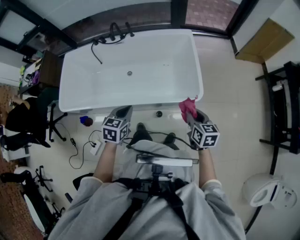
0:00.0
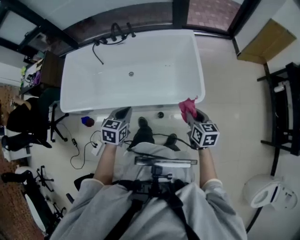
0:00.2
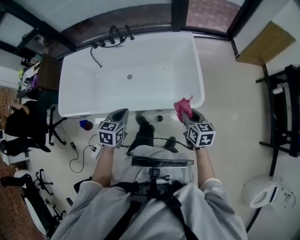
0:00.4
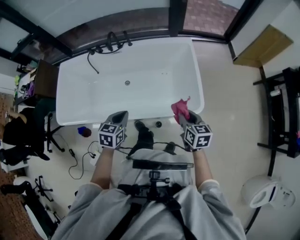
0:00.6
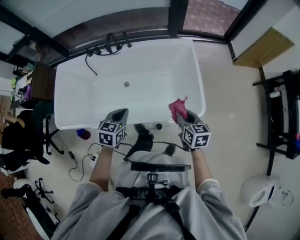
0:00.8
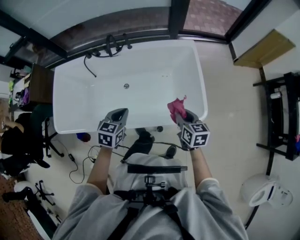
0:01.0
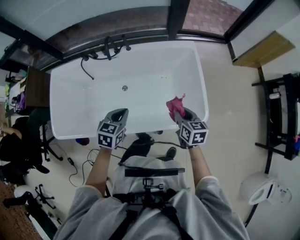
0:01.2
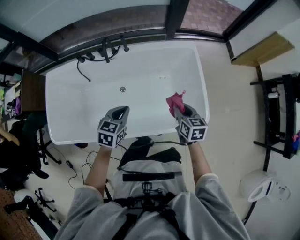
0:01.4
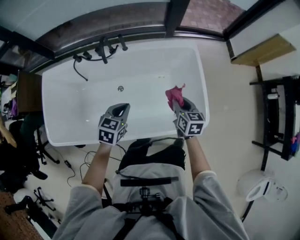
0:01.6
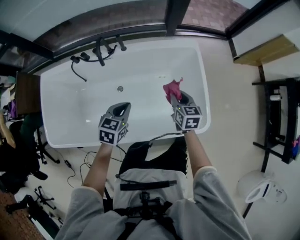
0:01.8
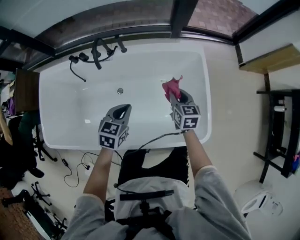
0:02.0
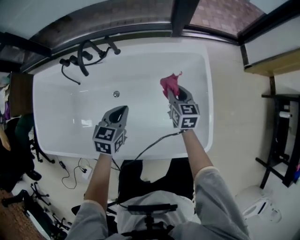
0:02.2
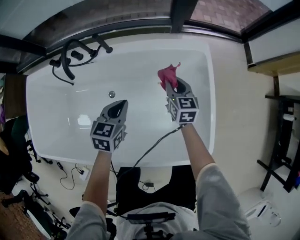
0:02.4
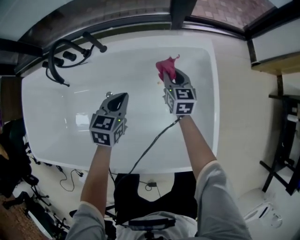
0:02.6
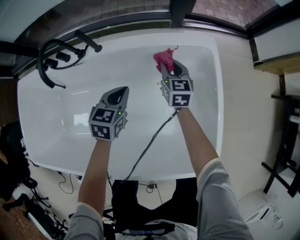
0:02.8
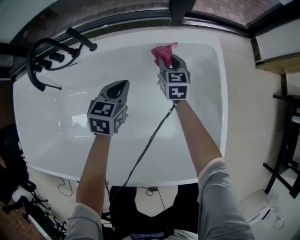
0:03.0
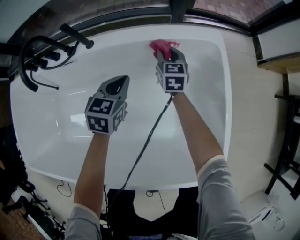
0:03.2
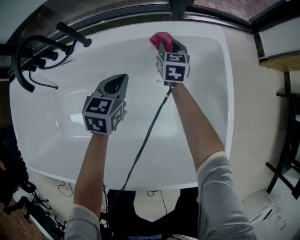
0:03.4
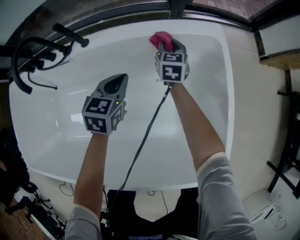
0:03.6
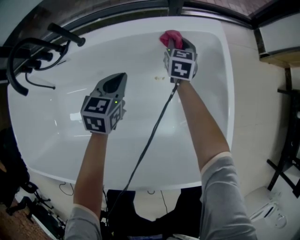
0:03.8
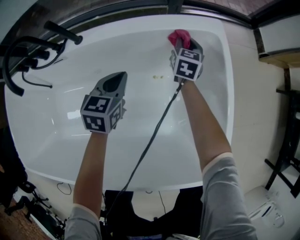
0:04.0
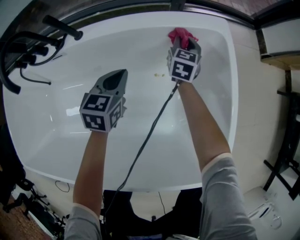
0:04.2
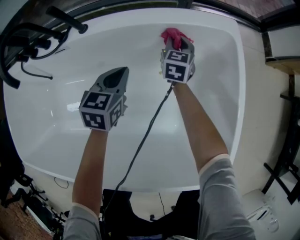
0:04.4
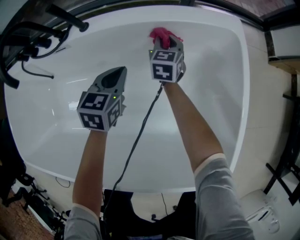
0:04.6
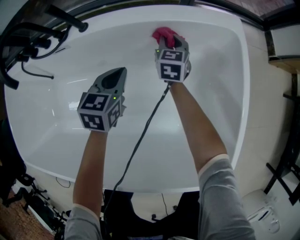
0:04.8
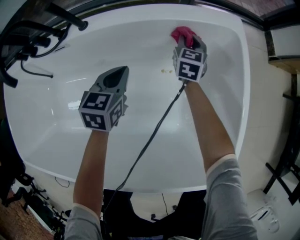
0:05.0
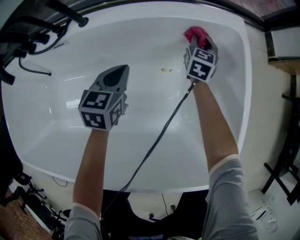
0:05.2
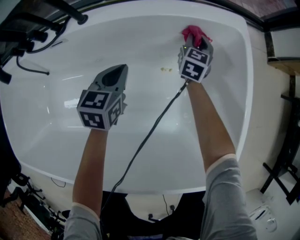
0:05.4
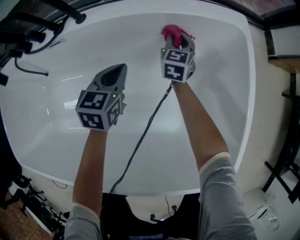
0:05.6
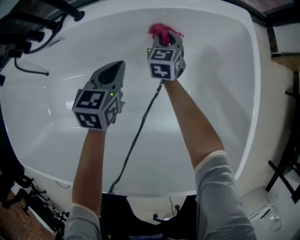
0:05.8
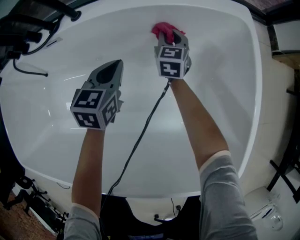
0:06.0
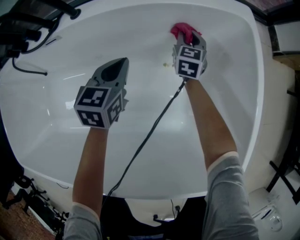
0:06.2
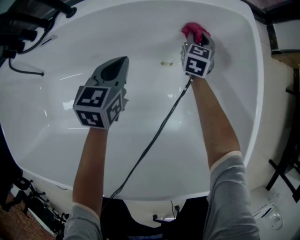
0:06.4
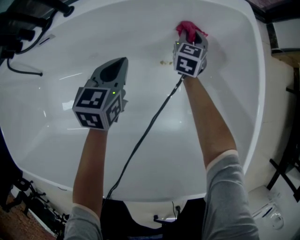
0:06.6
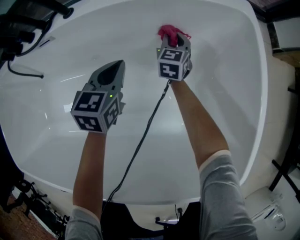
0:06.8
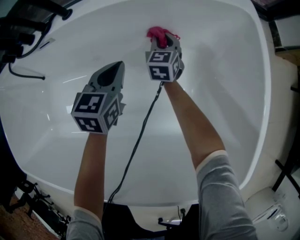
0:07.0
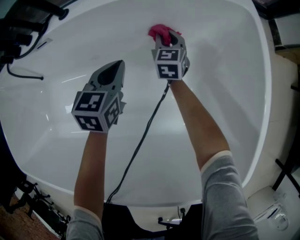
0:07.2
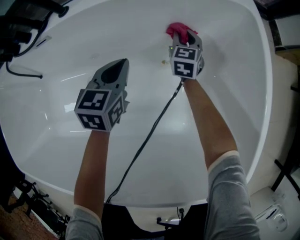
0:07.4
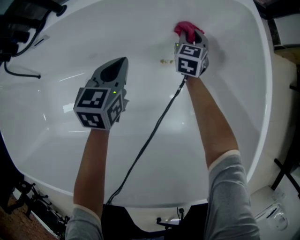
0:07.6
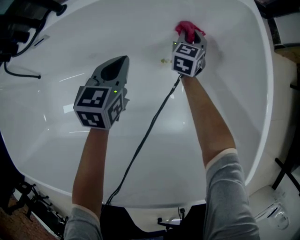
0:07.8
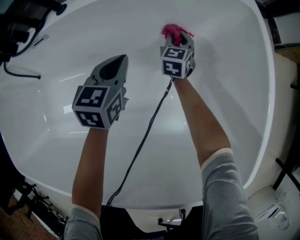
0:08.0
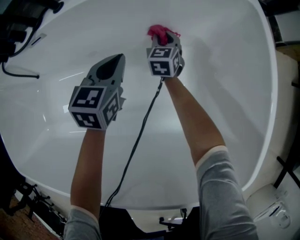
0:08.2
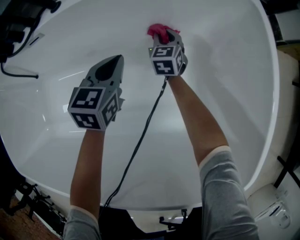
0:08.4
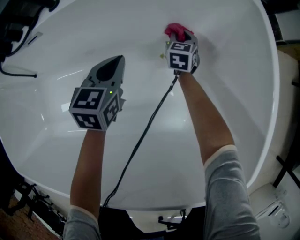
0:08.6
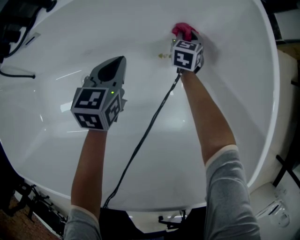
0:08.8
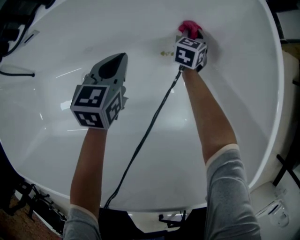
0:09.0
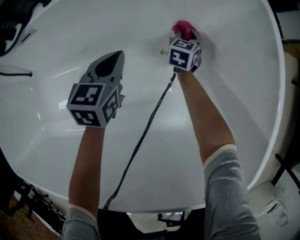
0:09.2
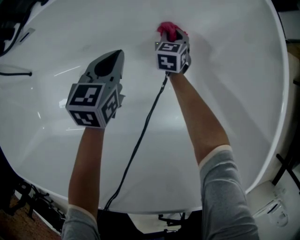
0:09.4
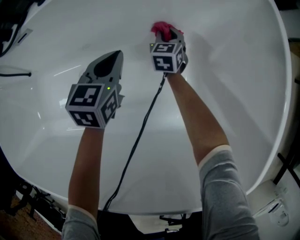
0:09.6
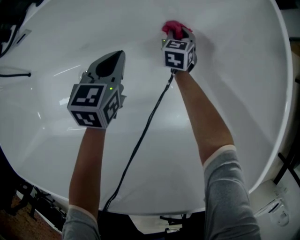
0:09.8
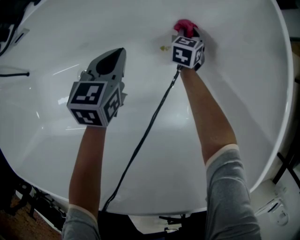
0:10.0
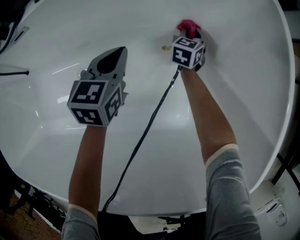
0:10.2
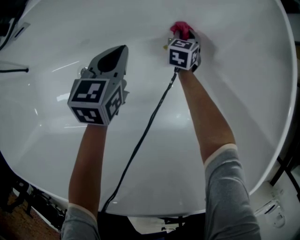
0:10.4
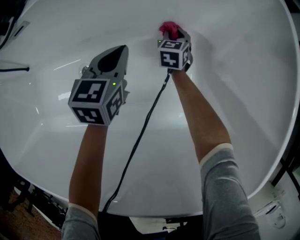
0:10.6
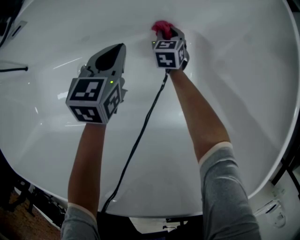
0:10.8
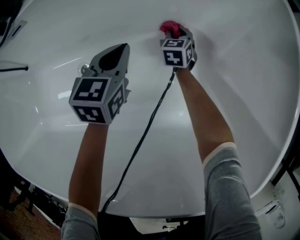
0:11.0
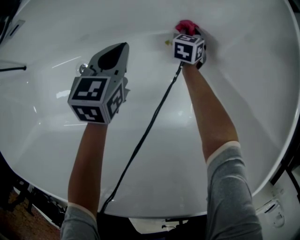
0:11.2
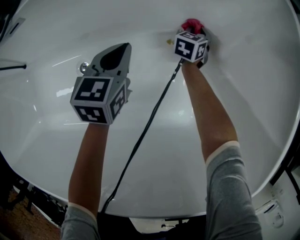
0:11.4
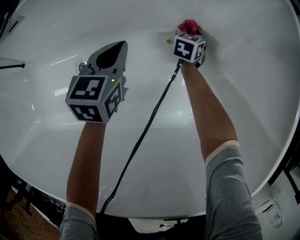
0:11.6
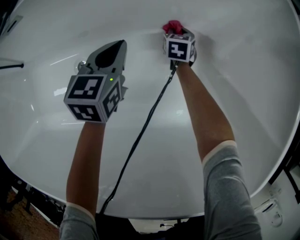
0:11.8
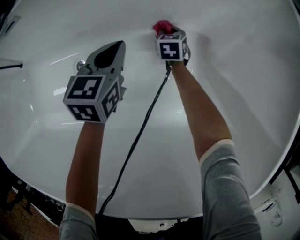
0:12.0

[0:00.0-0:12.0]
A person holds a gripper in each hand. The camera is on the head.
0:00.0 to 0:01.6: The left gripper heads forward, covering some 30 cm. Meanwhile the right gripper is displaced forward and to the left by about 35 cm.
0:01.6 to 0:03.0: Both grippers move forward and downward, approximately 40 cm.
0:03.0 to 0:04.4: The two grippers go approximately 5 cm downward. The right gripper goes to the right and returns, some 10 cm each way.
0:04.4 to 0:06.0: The right gripper moves left and right over roughly 15 cm, changing direction 2 times; the left gripper moves about 5 cm.
0:06.0 to 0:07.6: The right gripper swings left and right, approximately 15 cm each way, with 2 reversals. The left gripper shifts by roughly 5 cm.
0:07.6 to 0:09.0: The right gripper travels downward by some 5 cm, and goes to the left and returns, about 10 cm each way.
0:09.0 to 0:10.4: The right gripper shifts about 5 cm downward.
0:10.4 to 0:12.0: The right gripper swings left and right, about 10 cm each way, with 2 reversals.

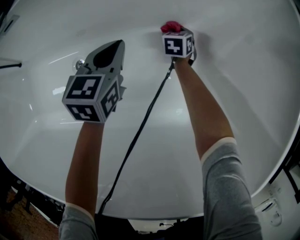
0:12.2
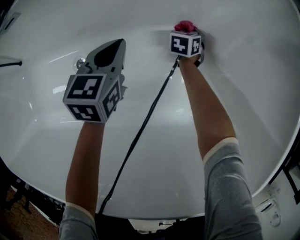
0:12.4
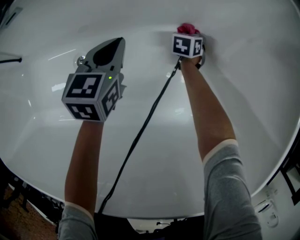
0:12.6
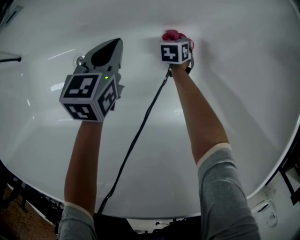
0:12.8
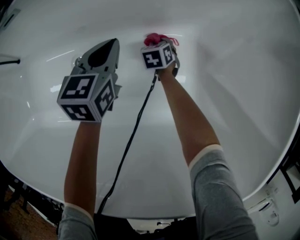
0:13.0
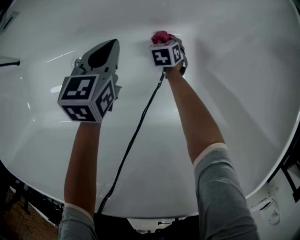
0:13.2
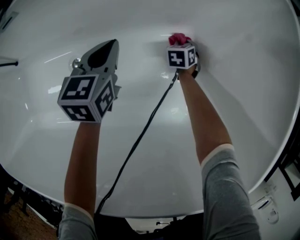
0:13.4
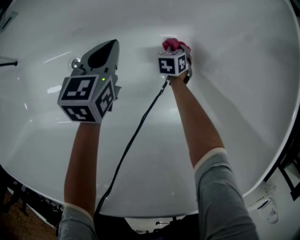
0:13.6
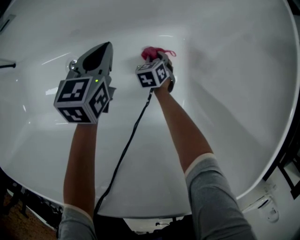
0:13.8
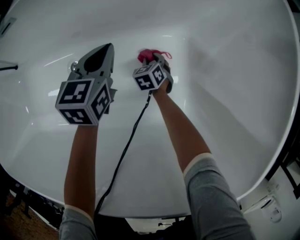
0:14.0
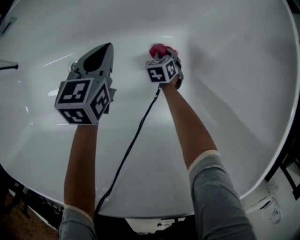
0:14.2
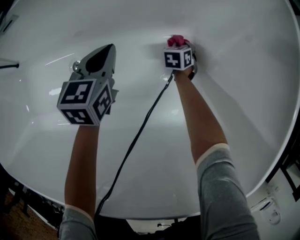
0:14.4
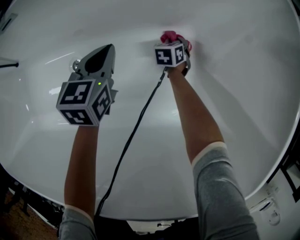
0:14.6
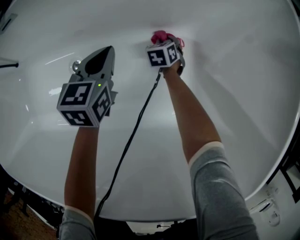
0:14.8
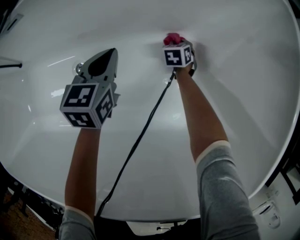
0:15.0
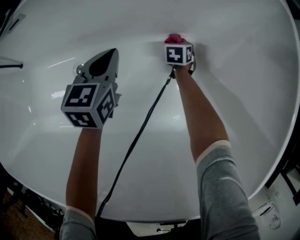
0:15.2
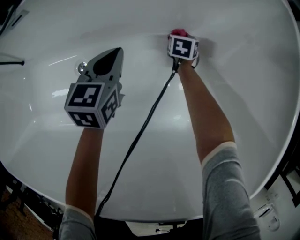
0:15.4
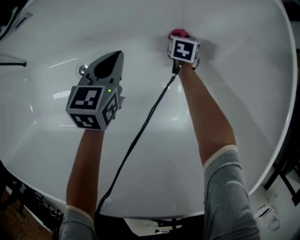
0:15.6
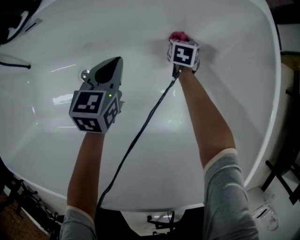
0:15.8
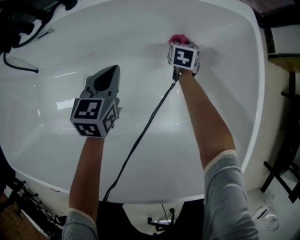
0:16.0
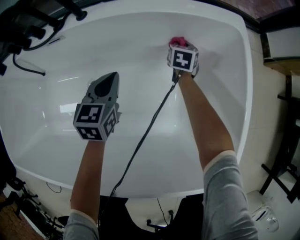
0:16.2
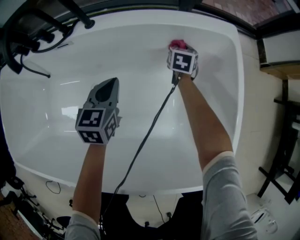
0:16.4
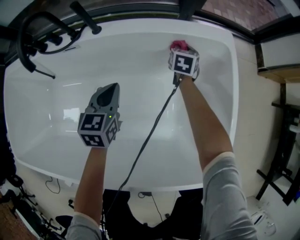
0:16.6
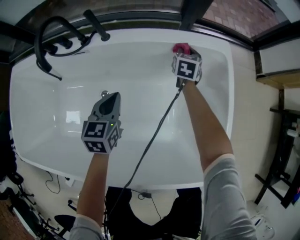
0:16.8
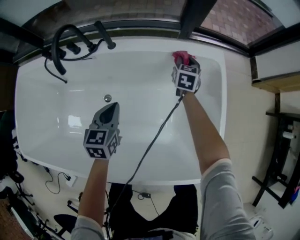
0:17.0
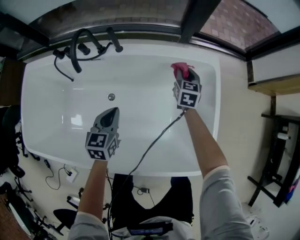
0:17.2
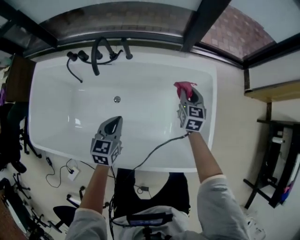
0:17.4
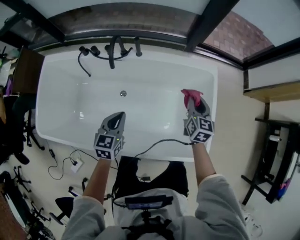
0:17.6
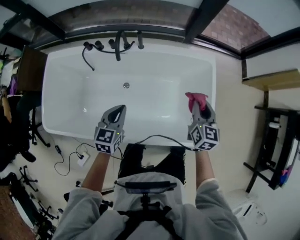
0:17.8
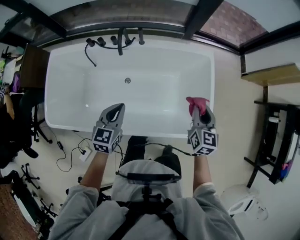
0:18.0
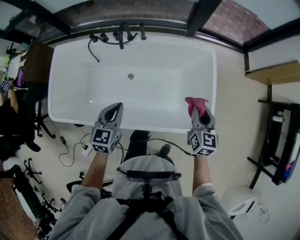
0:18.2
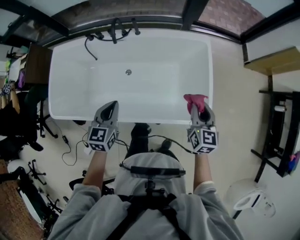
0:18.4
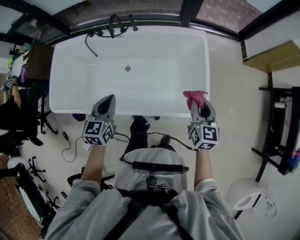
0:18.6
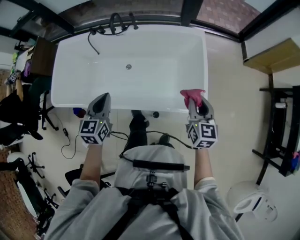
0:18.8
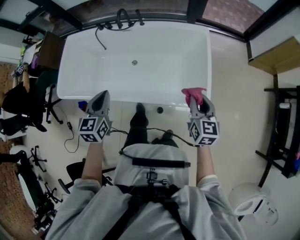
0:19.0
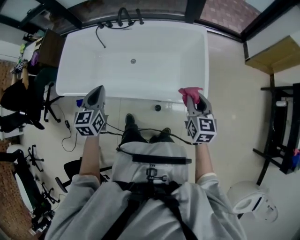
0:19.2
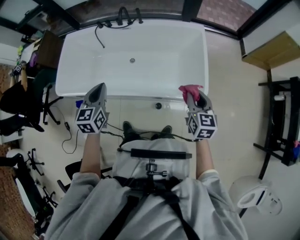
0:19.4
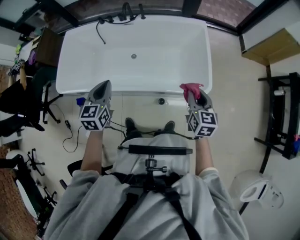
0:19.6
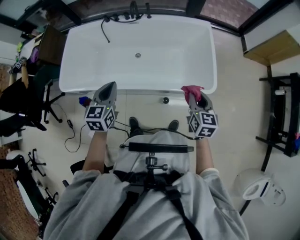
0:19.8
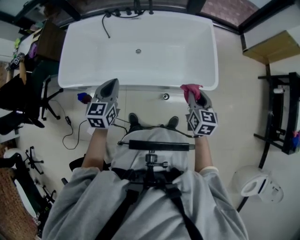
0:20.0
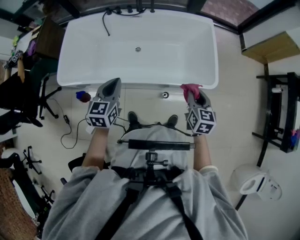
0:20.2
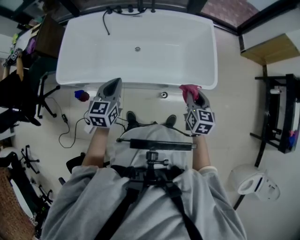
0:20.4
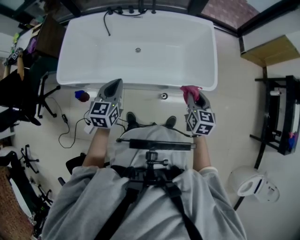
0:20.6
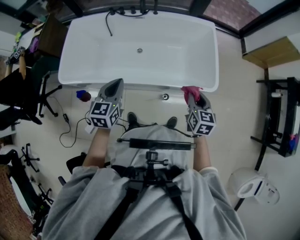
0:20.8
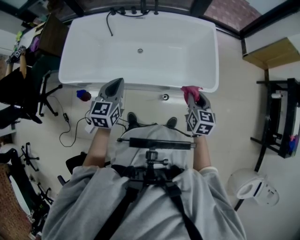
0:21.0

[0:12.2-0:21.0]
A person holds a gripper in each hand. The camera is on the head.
0:12.2 to 0:13.6: The right gripper moves left and right over about 10 cm, changing direction 2 times.
0:13.6 to 0:15.2: The right gripper moves forward, about 5 cm.
0:15.2 to 0:16.6: The right gripper heads upward, covering about 35 cm. Meanwhile the left gripper goes roughly 20 cm upward.
0:16.6 to 0:18.0: The grippers both shift upward and backward by about 50 cm. The right gripper rotates some 20 degrees.
0:18.0 to 0:19.6: Both grippers travel together backward, about 25 cm.
0:19.6 to 0:21.0: The right gripper goes roughly 10 cm to the left. Meanwhile the left gripper moves roughly 5 cm.

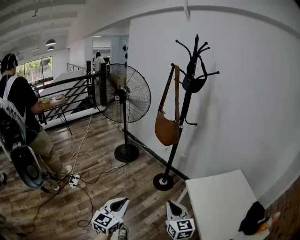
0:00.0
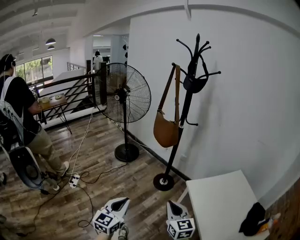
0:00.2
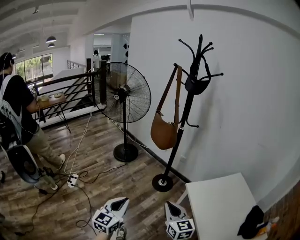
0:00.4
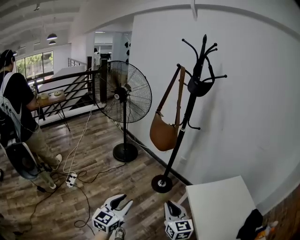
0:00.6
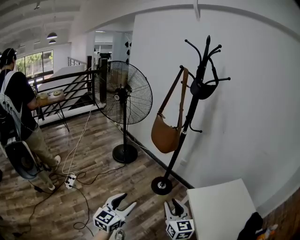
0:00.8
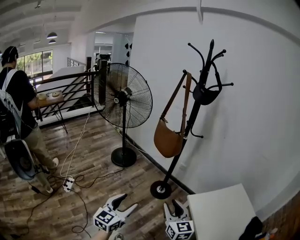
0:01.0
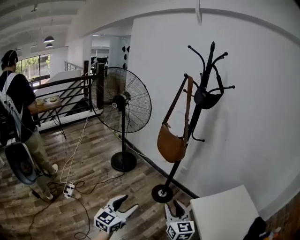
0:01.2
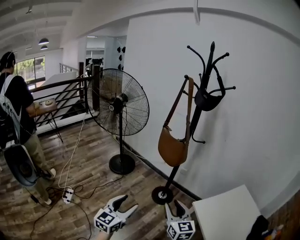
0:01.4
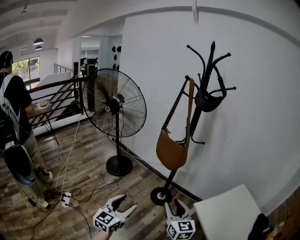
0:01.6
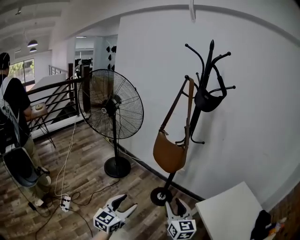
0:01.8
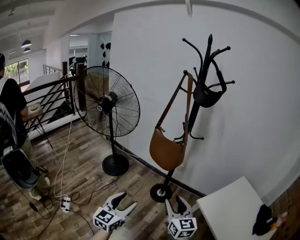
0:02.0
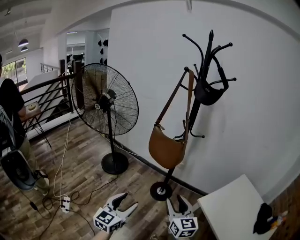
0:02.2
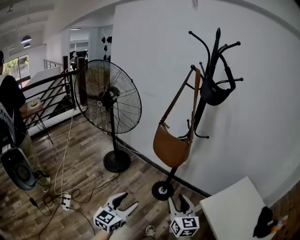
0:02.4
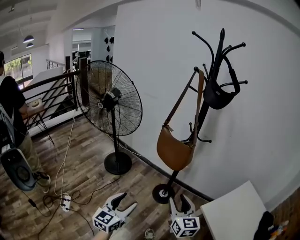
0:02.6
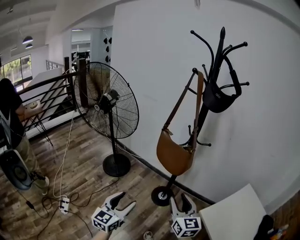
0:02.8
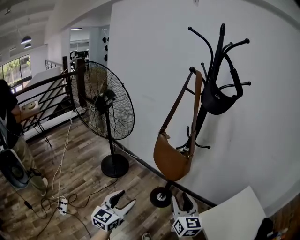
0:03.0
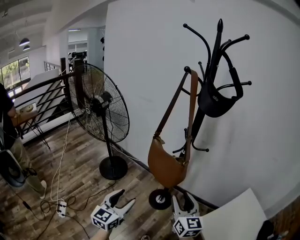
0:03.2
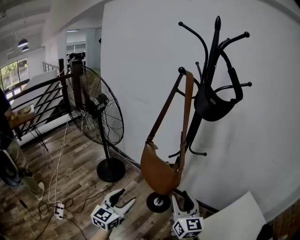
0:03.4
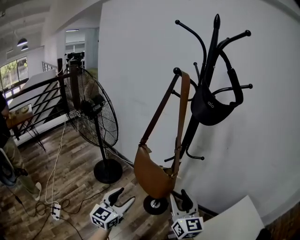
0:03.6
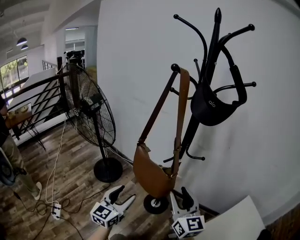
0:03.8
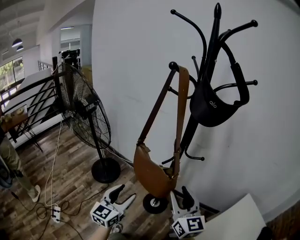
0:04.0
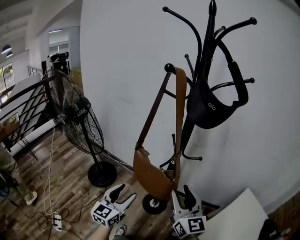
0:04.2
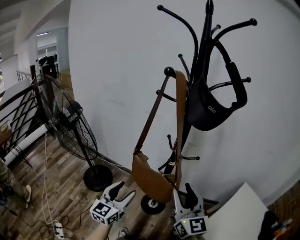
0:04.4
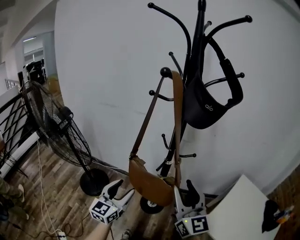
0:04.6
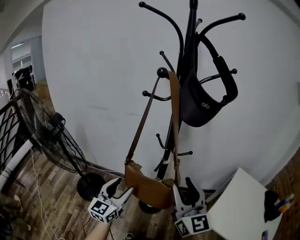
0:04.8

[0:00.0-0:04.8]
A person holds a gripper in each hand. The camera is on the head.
0:00.0 to 0:01.6: Both grippers travel together forward and to the left, some 25 cm. The left gripper opens its fingers. Meanwhile the right gripper opens.
0:01.6 to 0:03.2: Both grippers travel together forward, approximately 20 cm.
0:03.2 to 0:04.8: The left gripper is displaced forward by roughly 25 cm, and rotates some 20 degrees. The right gripper travels upward and forward by about 20 cm, and turns by about 20 degrees.
